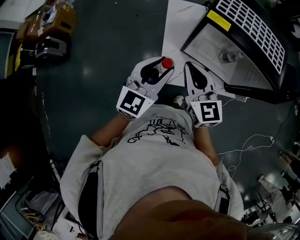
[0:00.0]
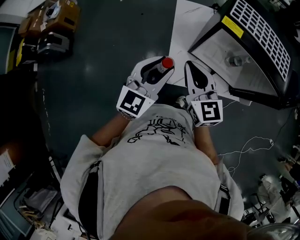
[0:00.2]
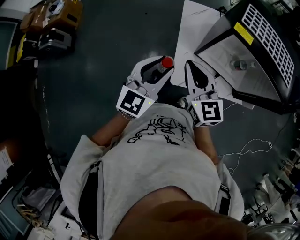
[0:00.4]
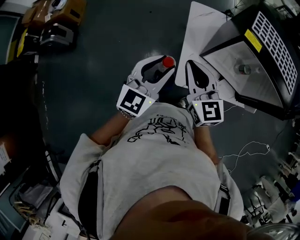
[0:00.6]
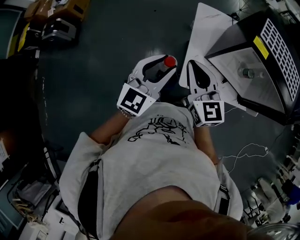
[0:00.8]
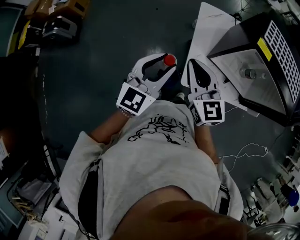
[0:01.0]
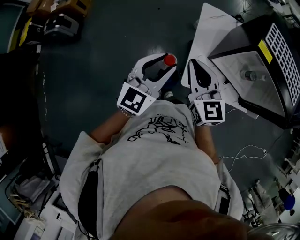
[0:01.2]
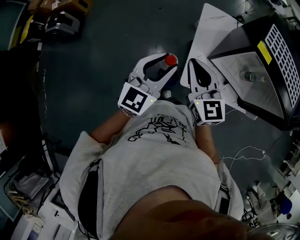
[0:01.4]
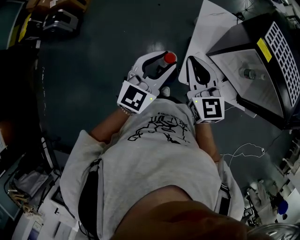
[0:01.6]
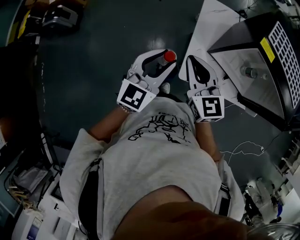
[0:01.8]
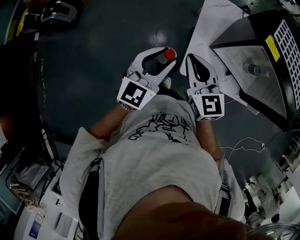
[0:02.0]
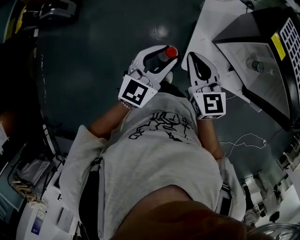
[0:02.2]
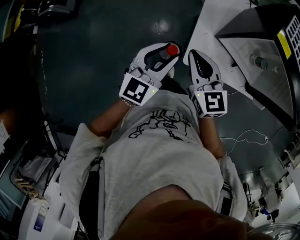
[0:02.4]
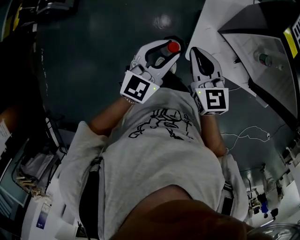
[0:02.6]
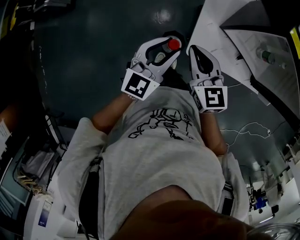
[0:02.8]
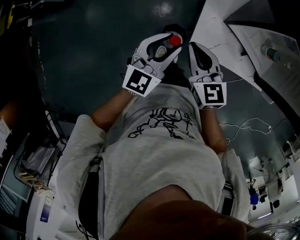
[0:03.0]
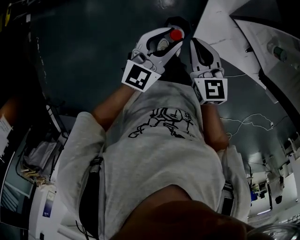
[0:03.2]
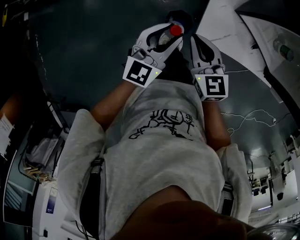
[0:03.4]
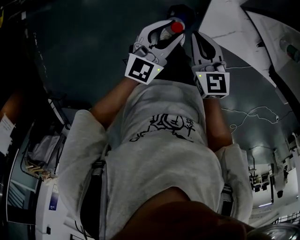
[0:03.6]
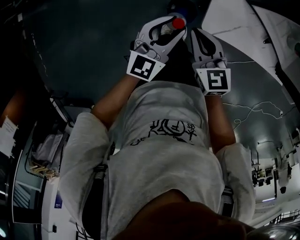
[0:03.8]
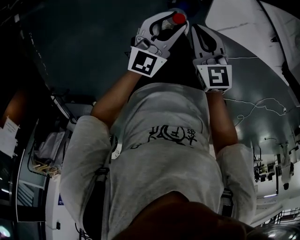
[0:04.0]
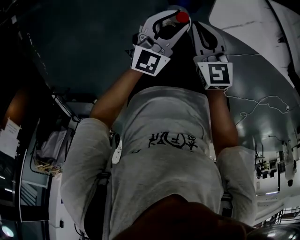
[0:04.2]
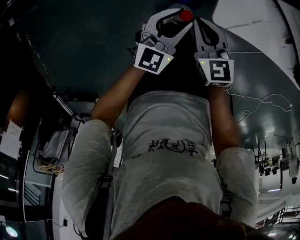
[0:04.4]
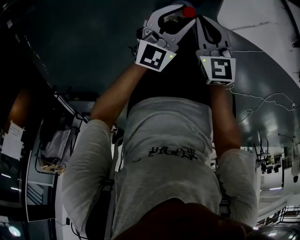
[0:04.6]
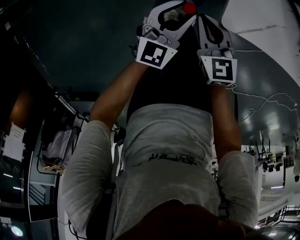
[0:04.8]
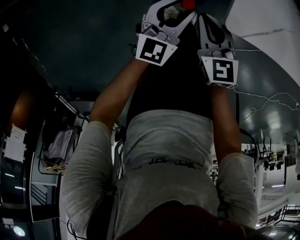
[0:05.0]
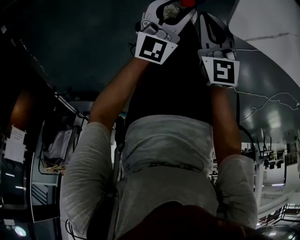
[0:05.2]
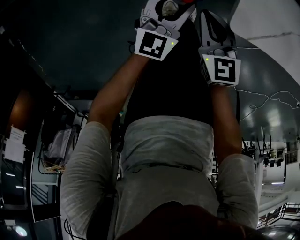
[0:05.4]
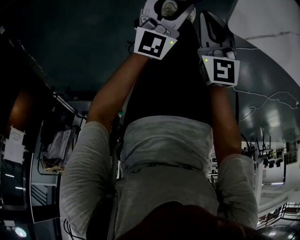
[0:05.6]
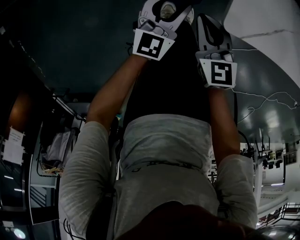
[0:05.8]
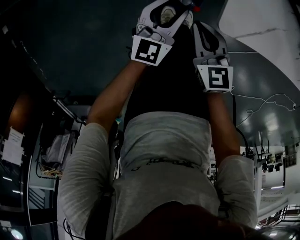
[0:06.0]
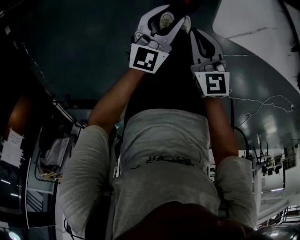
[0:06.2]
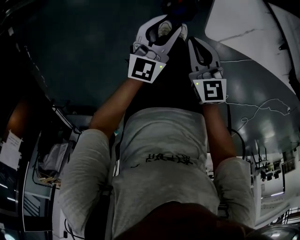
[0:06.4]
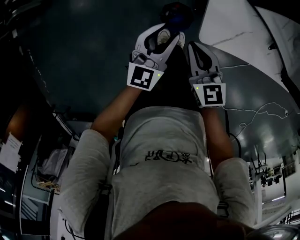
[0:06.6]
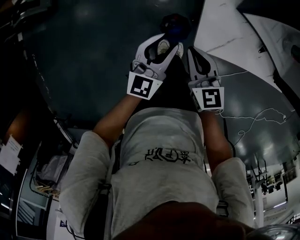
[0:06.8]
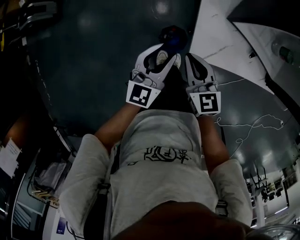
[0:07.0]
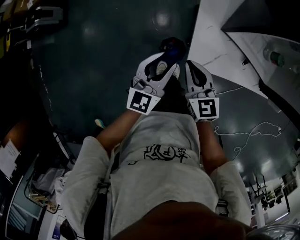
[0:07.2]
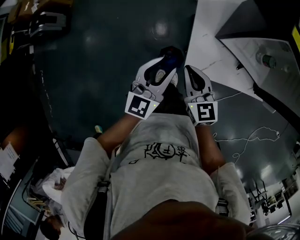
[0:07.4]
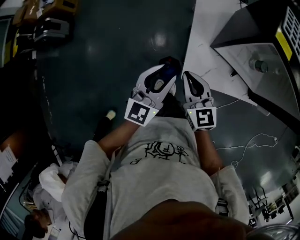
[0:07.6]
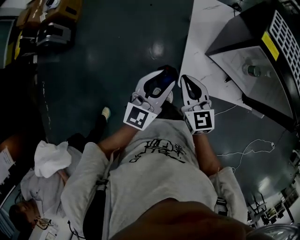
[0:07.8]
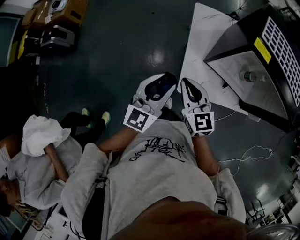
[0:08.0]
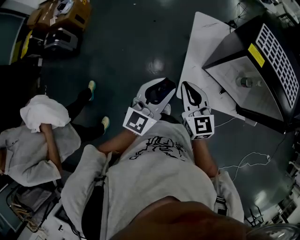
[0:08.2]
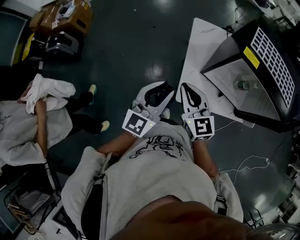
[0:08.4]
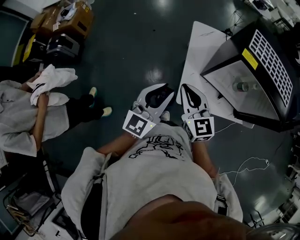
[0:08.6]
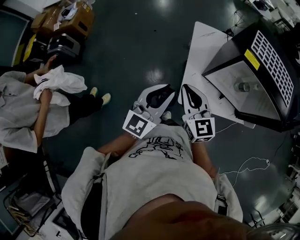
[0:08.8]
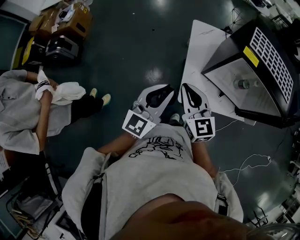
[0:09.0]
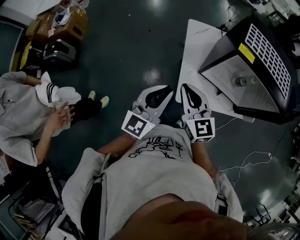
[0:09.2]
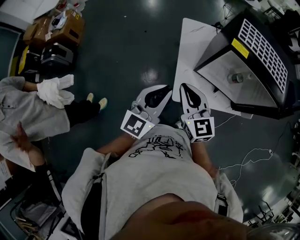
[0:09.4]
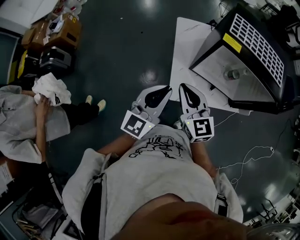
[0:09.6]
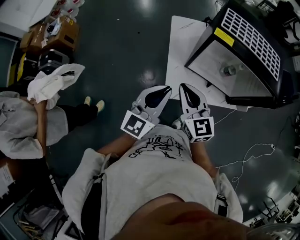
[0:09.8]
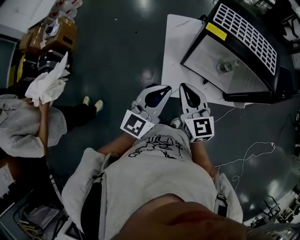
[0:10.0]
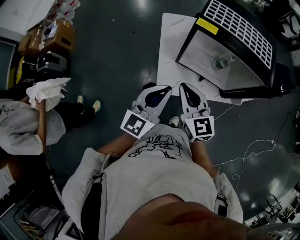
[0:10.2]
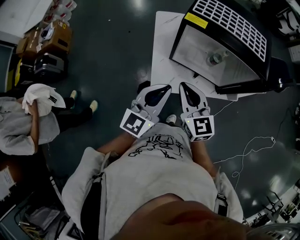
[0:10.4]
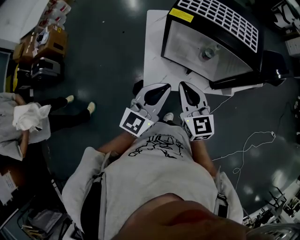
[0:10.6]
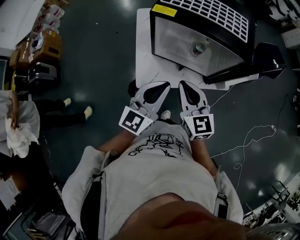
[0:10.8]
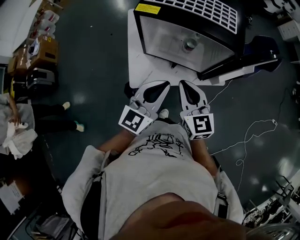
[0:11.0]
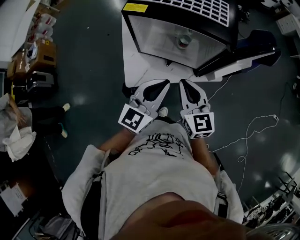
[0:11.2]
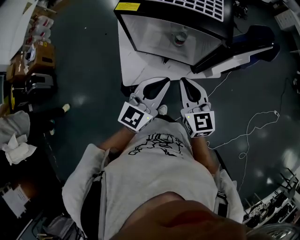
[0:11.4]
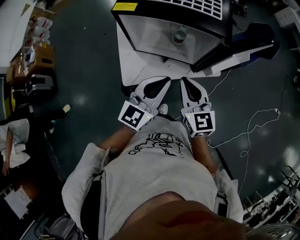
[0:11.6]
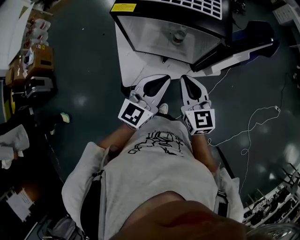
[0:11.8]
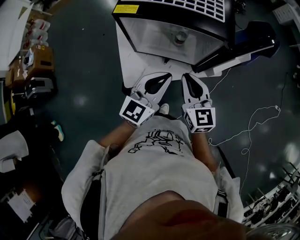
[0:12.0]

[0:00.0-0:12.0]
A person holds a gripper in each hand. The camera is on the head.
0:00.0 to 0:01.6: Both grippers travel together to the left, about 15 cm.
0:01.6 to 0:03.0: The grippers both shift downward by approximately 15 cm.
0:03.0 to 0:04.4: Both grippers move downward, roughly 25 cm.
0:04.4 to 0:06.0: Both grippers move downward, approximately 10 cm.
0:06.0 to 0:07.6: The two grippers go some 35 cm upward.
0:07.6 to 0:09.0: The two grippers go some 15 cm upward.
0:09.0 to 0:10.4: The grippers both shift to the right by some 20 cm.
0:10.4 to 0:12.0: Both grippers travel together to the right, roughly 20 cm.

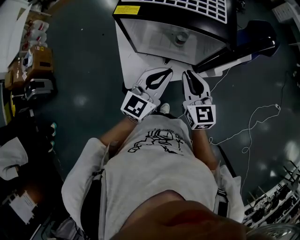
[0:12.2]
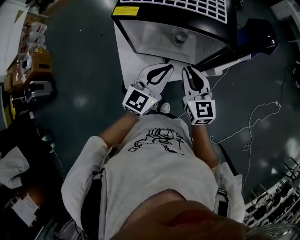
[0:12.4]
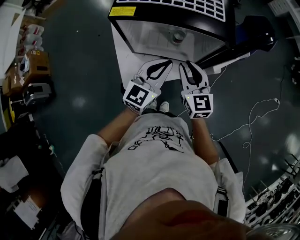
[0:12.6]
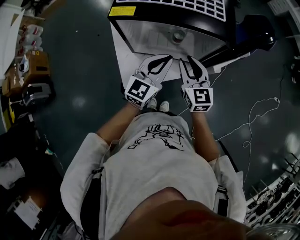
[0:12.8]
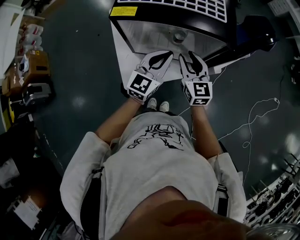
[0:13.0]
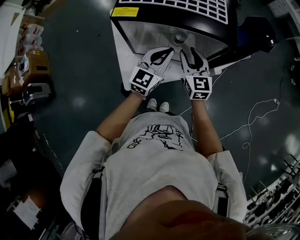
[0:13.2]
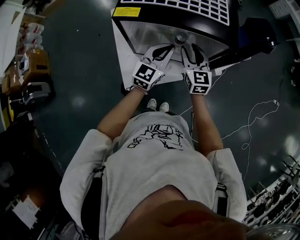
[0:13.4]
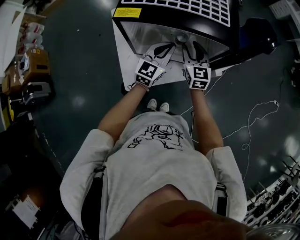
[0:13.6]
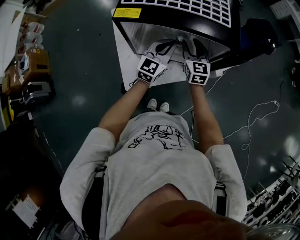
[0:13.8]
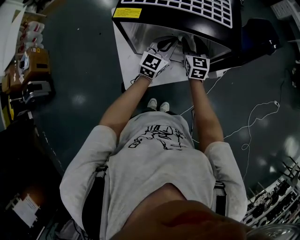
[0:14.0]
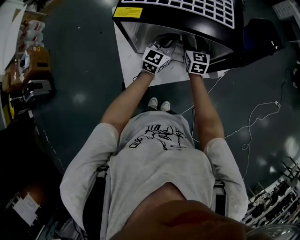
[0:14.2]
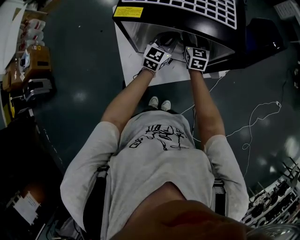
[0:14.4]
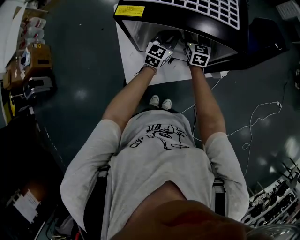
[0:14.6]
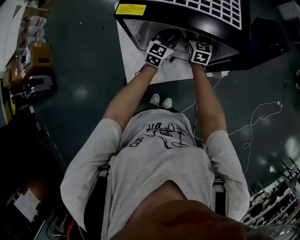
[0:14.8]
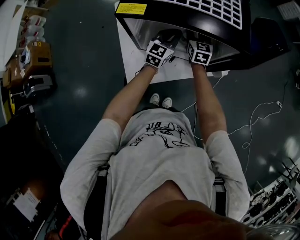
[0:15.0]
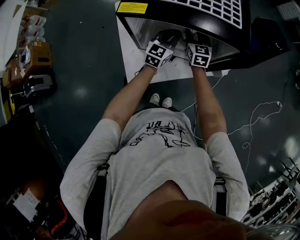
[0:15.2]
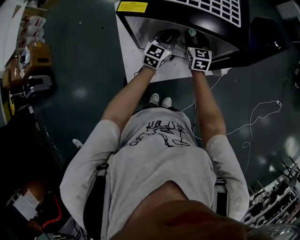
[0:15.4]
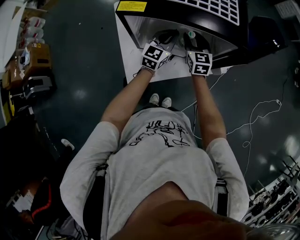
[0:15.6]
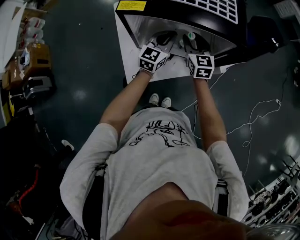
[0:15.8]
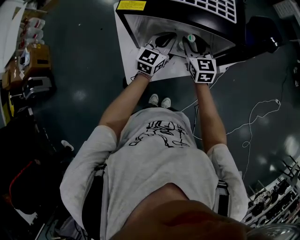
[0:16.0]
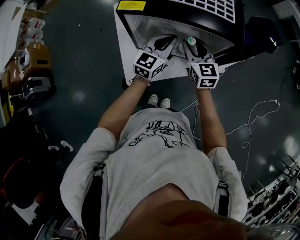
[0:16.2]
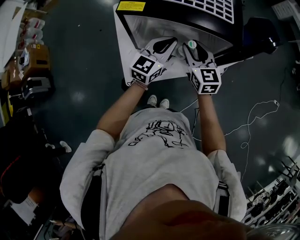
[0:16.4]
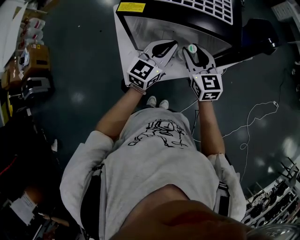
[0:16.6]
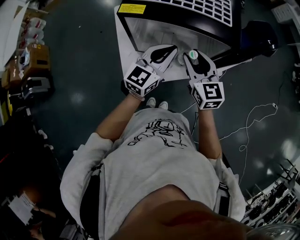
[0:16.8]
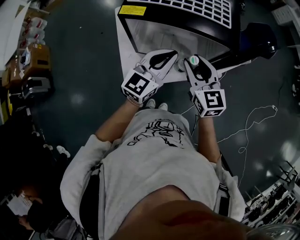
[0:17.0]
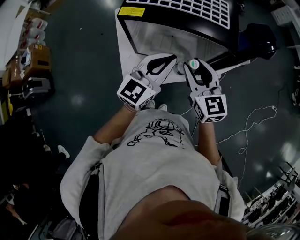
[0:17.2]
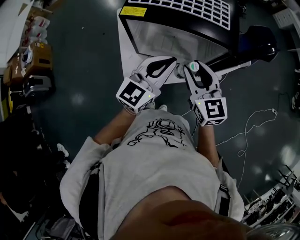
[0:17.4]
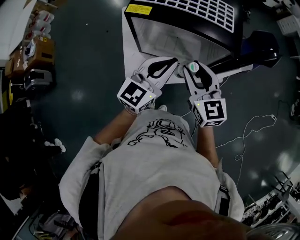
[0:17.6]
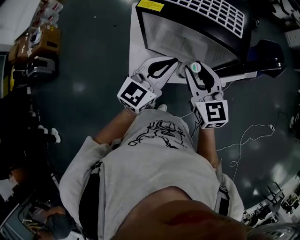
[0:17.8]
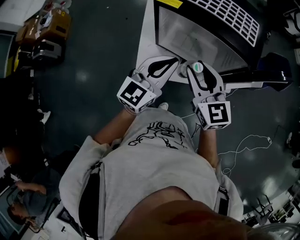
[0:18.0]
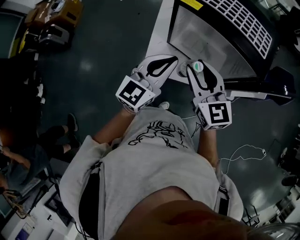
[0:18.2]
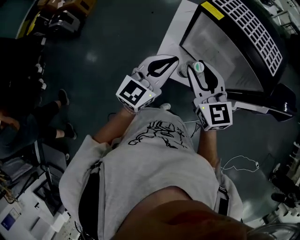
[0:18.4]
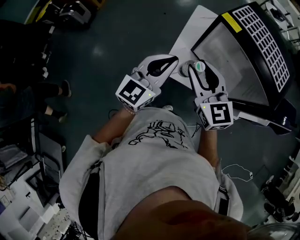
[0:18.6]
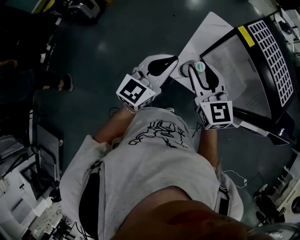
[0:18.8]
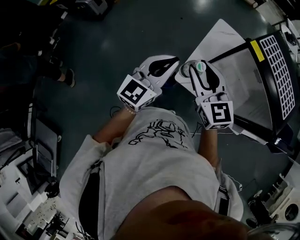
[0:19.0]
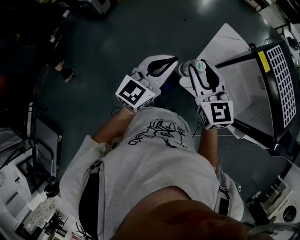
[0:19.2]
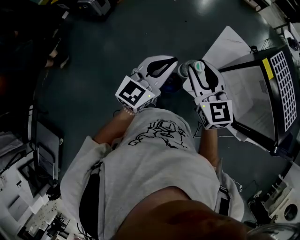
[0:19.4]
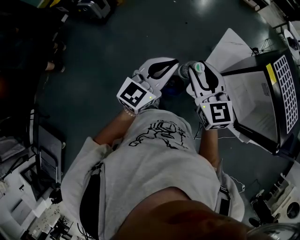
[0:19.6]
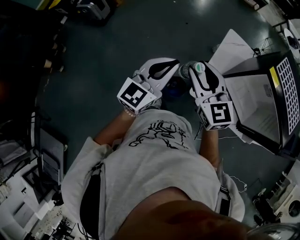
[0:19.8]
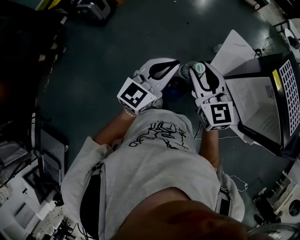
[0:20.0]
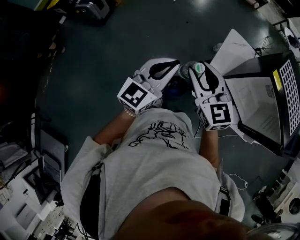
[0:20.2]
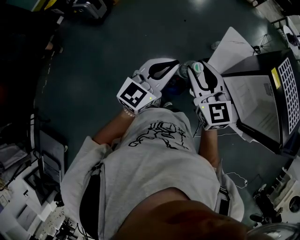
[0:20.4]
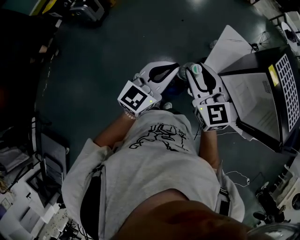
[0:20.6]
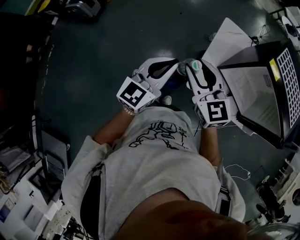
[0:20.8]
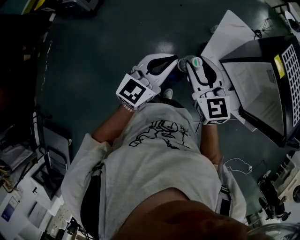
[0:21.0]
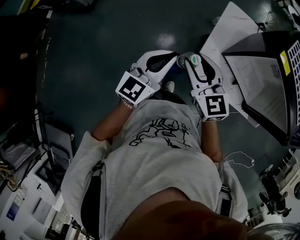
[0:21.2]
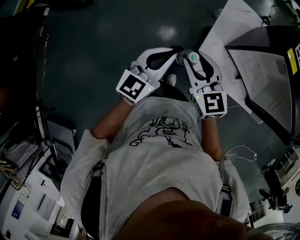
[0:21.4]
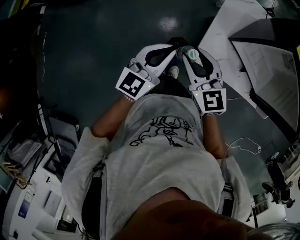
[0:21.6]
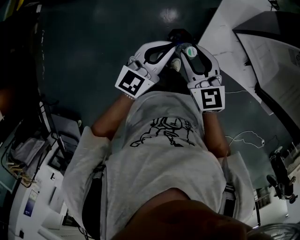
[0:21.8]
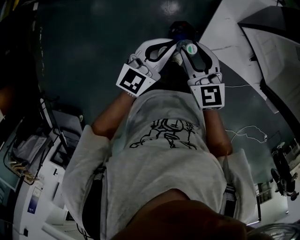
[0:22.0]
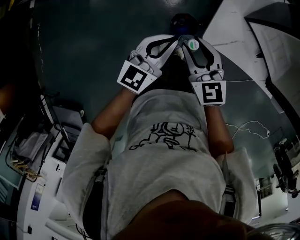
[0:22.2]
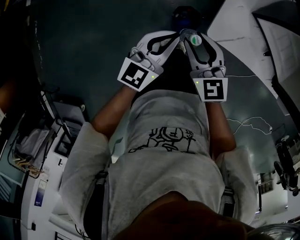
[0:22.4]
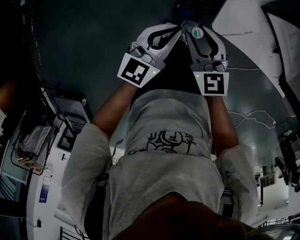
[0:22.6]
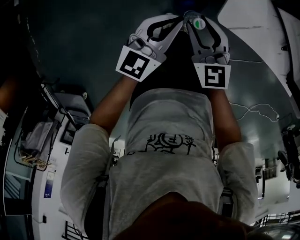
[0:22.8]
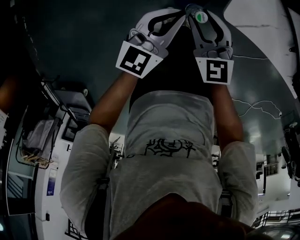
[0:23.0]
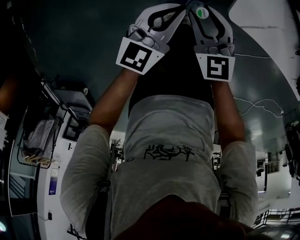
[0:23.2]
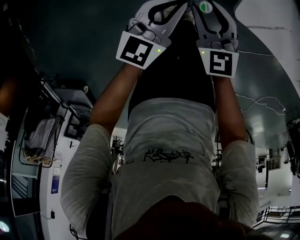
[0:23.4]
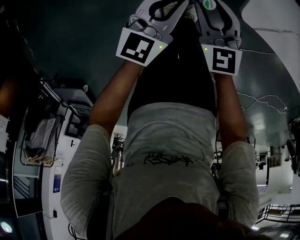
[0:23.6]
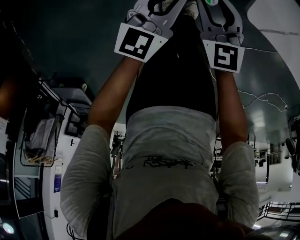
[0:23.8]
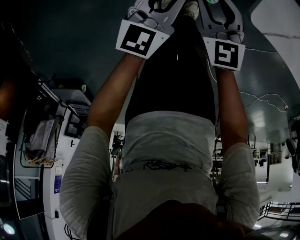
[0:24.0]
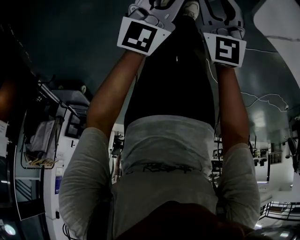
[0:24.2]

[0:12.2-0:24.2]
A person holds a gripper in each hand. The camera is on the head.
0:12.2 to 0:13.8: Both grippers move forward and downward, some 20 cm. The right gripper opens up.
0:13.8 to 0:15.2: The left gripper is displaced downward and forward by about 10 cm, while the right gripper heads forward, covering about 5 cm.
0:15.2 to 0:16.6: The left gripper is displaced upward and backward by roughly 15 cm; the right gripper heads backward and upward, covering about 20 cm.
0:16.6 to 0:18.2: The two grippers go approximately 15 cm backward, to the left and upward. The left gripper swivels some 20 degrees. The right gripper rotates roughly 30 degrees.
0:18.2 to 0:19.8: The two grippers go roughly 35 cm to the left.
0:19.8 to 0:21.2: The grippers both shift downward by some 10 cm.
0:21.2 to 0:22.6: The grippers both shift downward by some 25 cm.
0:22.6 to 0:24.2: The two grippers go approximately 25 cm downward.
